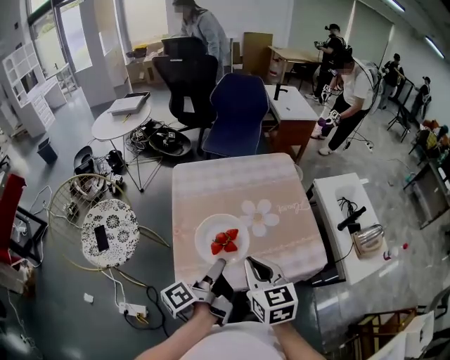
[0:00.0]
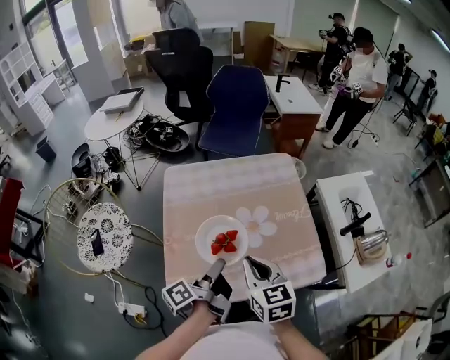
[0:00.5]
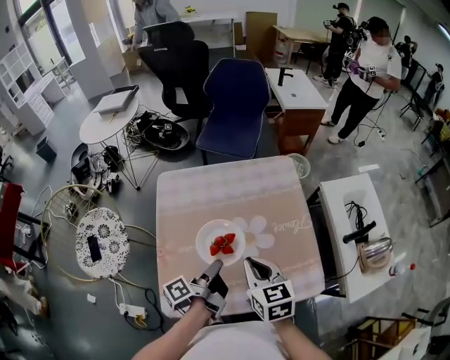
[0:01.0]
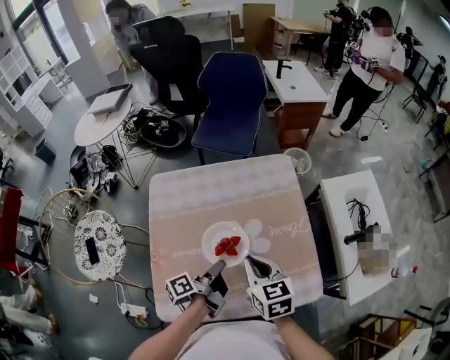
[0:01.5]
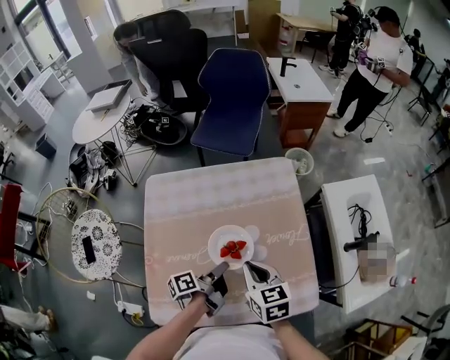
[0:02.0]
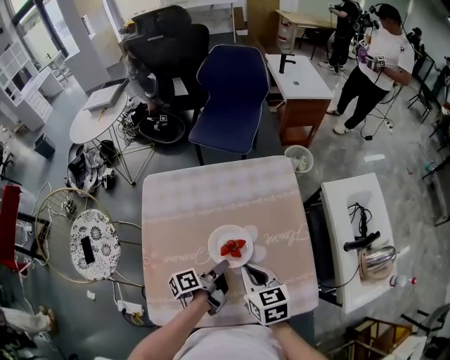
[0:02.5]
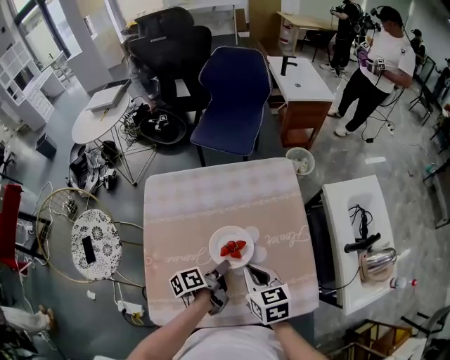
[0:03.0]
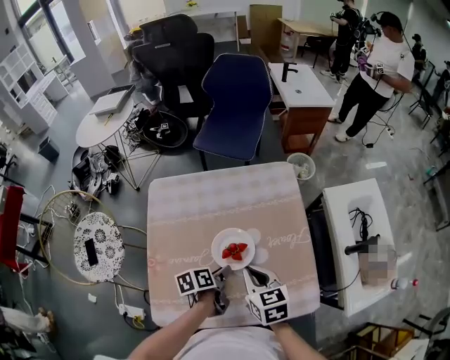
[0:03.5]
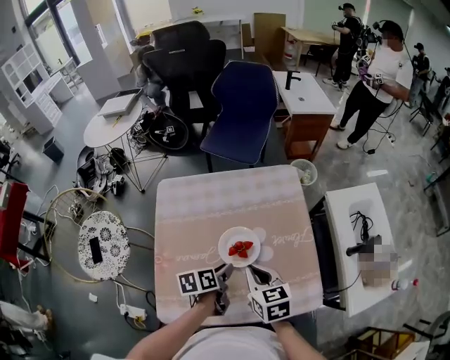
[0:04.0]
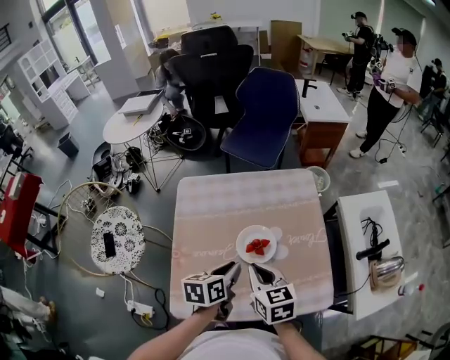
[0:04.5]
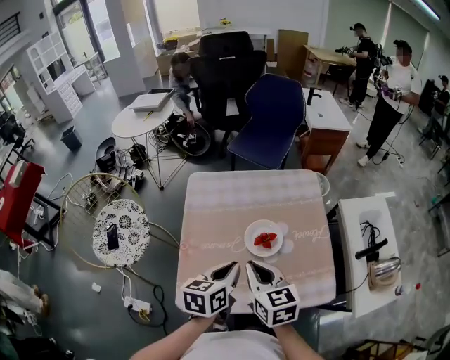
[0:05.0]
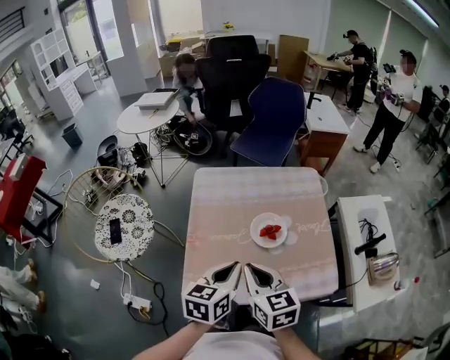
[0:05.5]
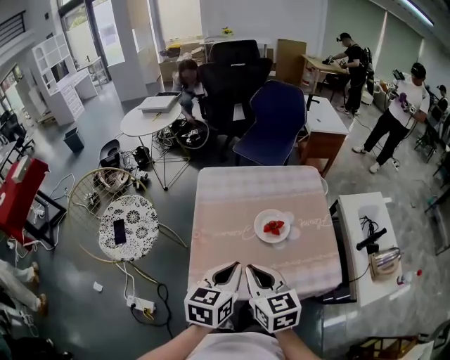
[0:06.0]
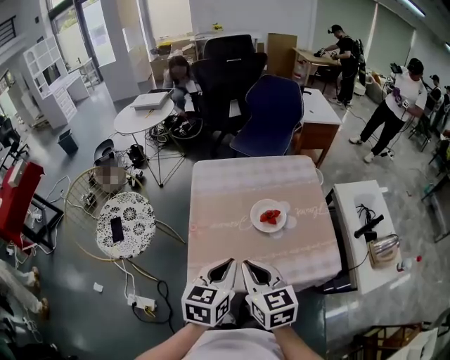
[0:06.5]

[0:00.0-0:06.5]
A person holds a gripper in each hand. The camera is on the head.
0:00.0 to 0:02.0: The right gripper shifts by roughly 25 cm.
0:02.0 to 0:04.5: The right gripper moves roughly 10 cm.
0:04.5 to 0:06.5: The right gripper changes place by some 20 cm.

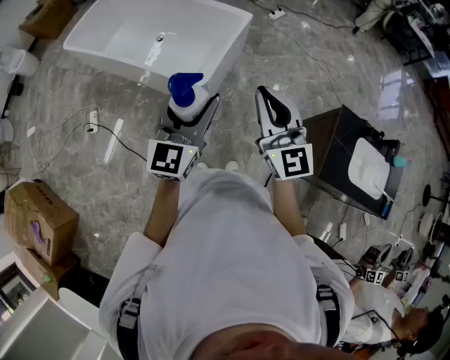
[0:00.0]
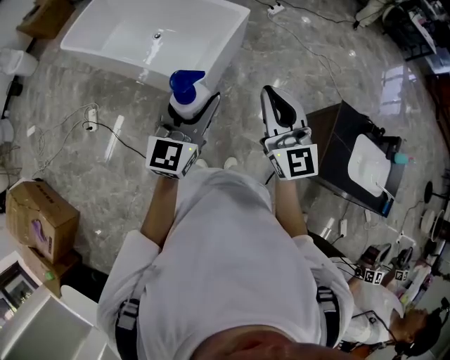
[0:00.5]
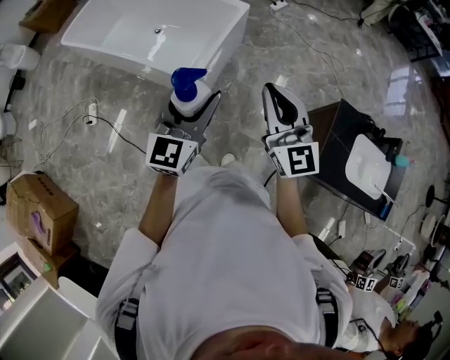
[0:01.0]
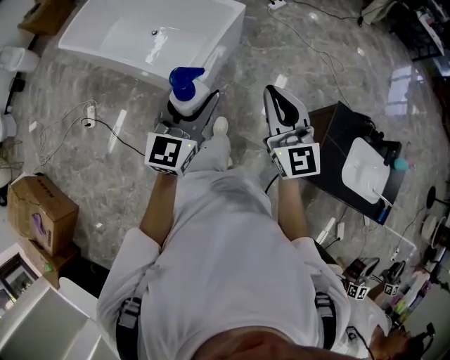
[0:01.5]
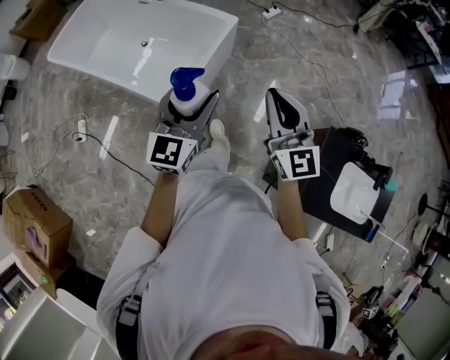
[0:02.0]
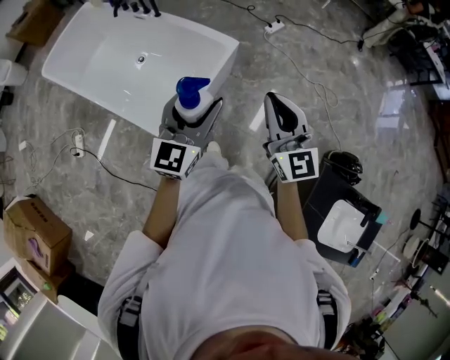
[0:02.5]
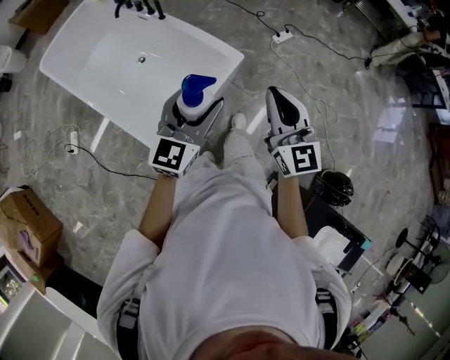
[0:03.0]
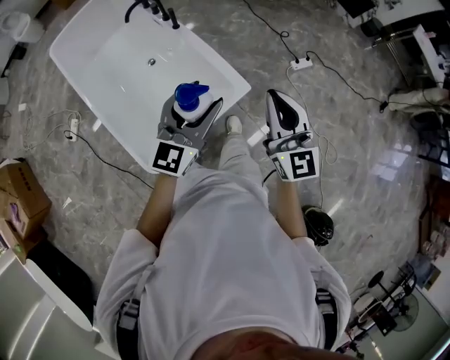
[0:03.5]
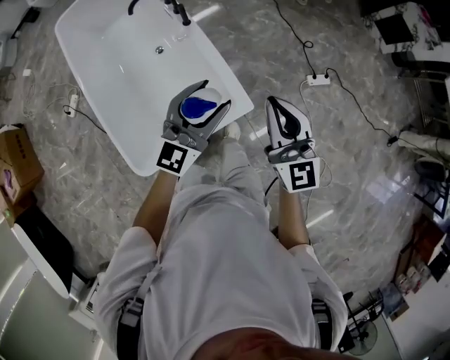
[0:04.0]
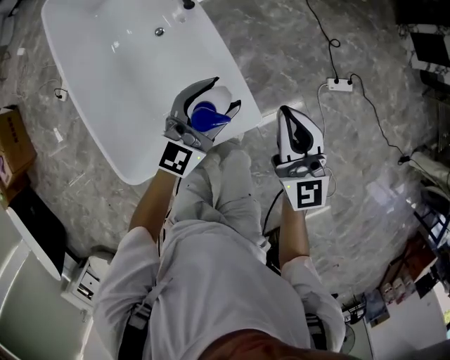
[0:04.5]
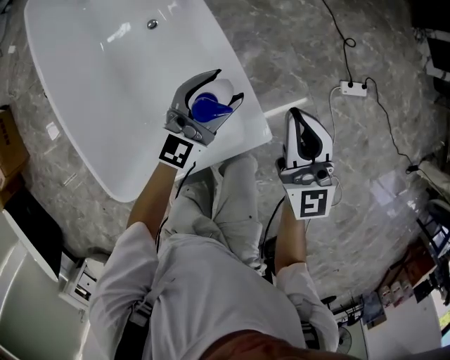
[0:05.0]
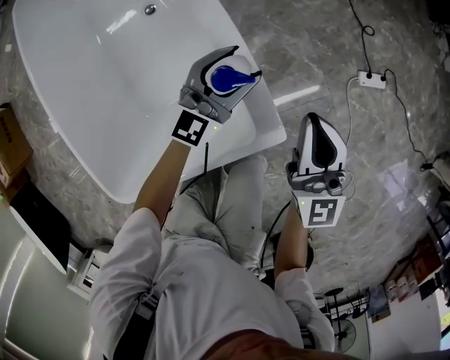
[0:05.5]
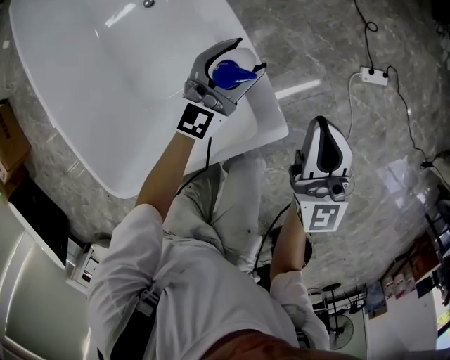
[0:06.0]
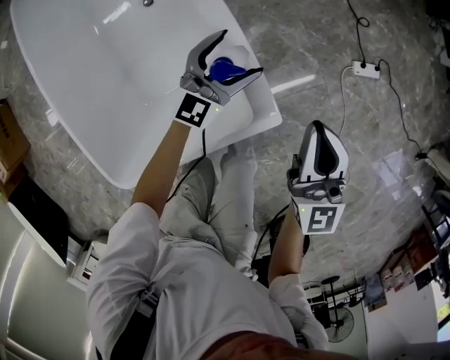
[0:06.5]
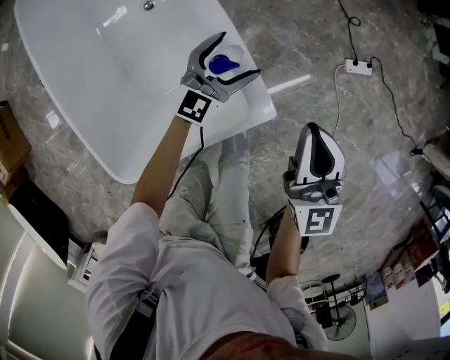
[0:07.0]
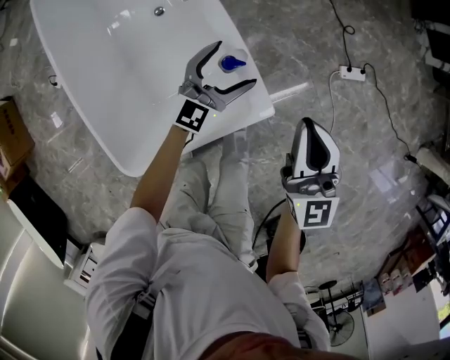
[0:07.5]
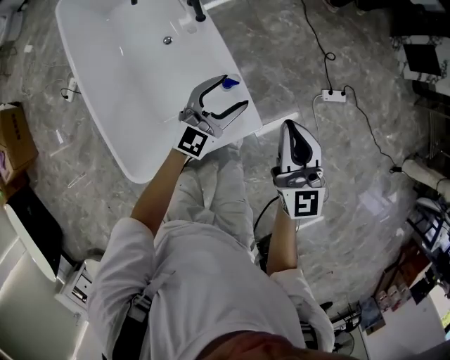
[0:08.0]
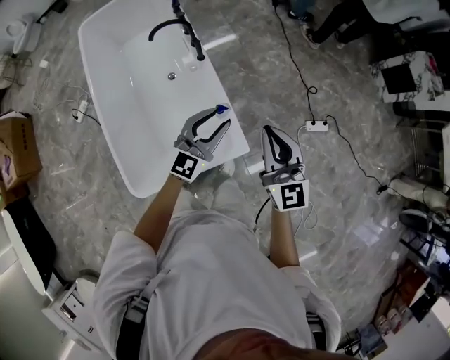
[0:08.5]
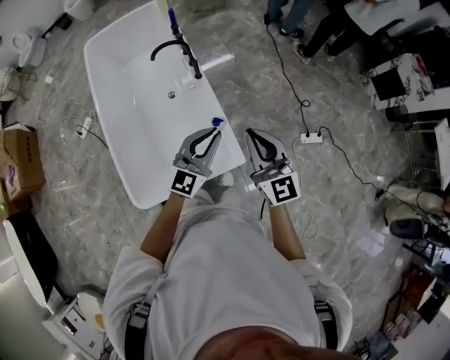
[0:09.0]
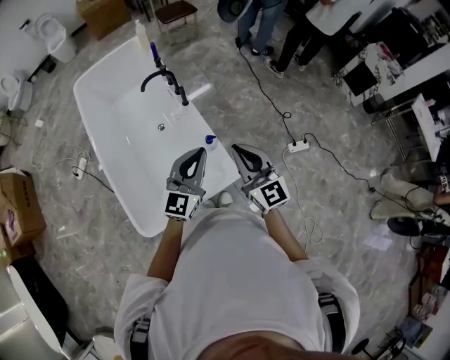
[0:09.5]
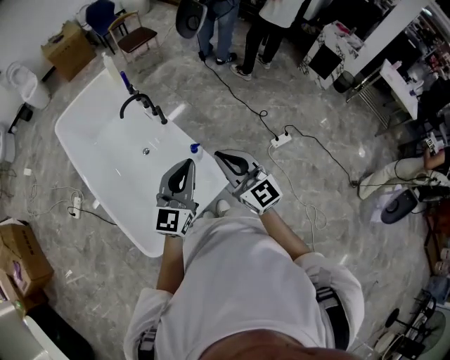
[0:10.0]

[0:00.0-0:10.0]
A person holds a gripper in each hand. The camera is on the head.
0:00.0 to 0:02.0: The grippers both shift forward and to the right by some 20 cm.
0:02.0 to 0:04.0: The two grippers travel together, roughly 70 cm. The left gripper changes its angle by roughly 20 degrees. The right gripper changes its angle by about 30 degrees.
0:04.0 to 0:06.0: The left gripper heads downward and forward, covering about 40 cm. The right gripper moves downward, approximately 35 cm.
0:06.0 to 0:08.0: The two grippers go some 25 cm upward.
0:08.0 to 0:10.0: The right gripper goes approximately 20 cm upward, backward and to the left. The left gripper is displaced upward and backward by some 30 cm, and closes.

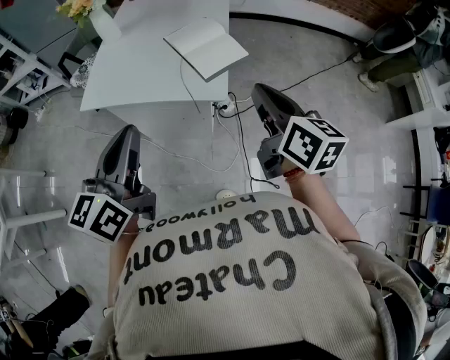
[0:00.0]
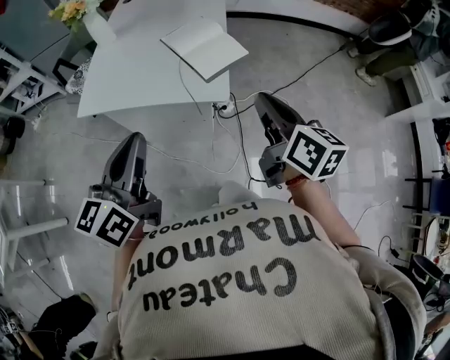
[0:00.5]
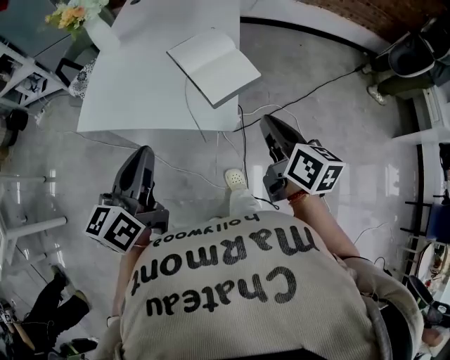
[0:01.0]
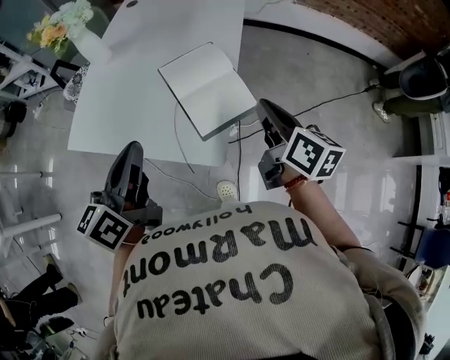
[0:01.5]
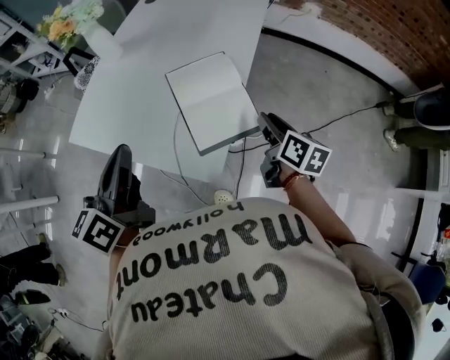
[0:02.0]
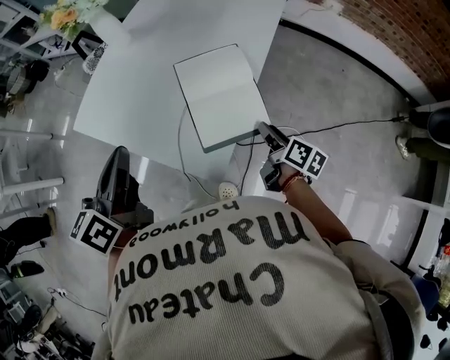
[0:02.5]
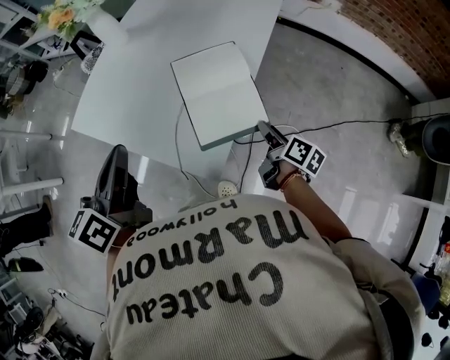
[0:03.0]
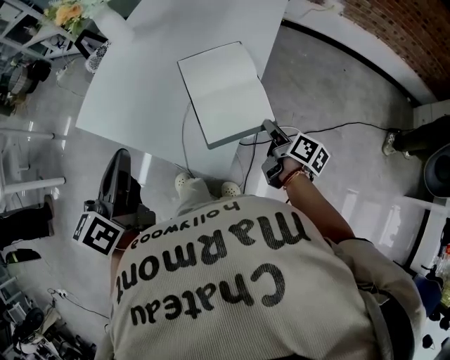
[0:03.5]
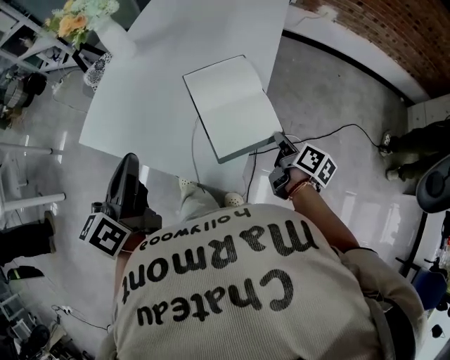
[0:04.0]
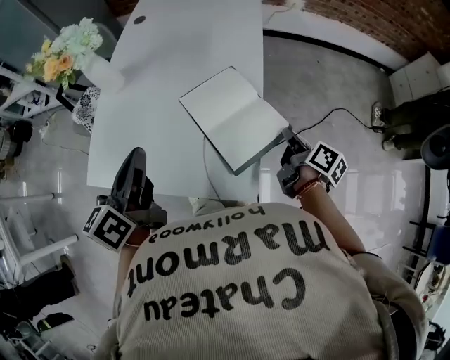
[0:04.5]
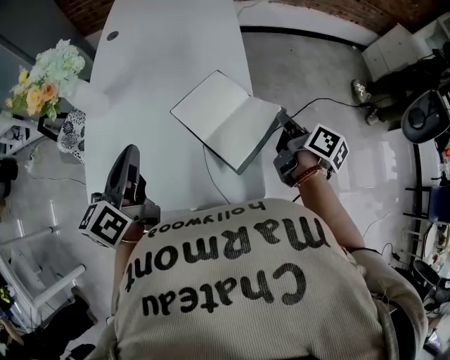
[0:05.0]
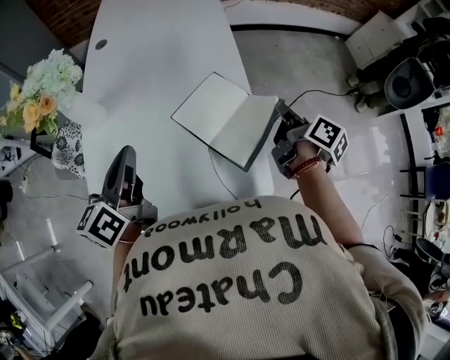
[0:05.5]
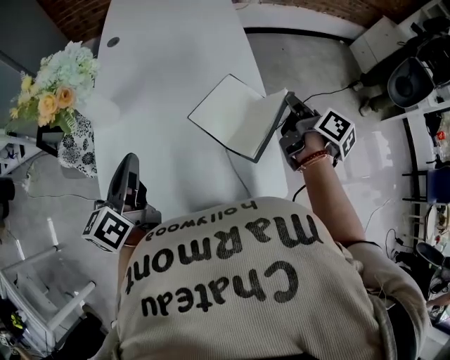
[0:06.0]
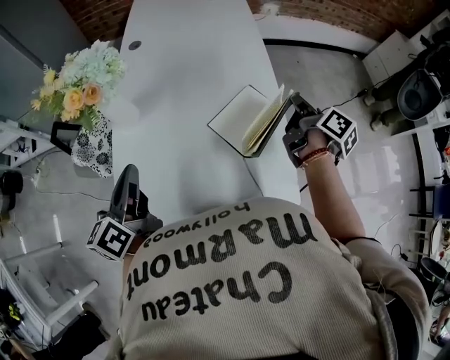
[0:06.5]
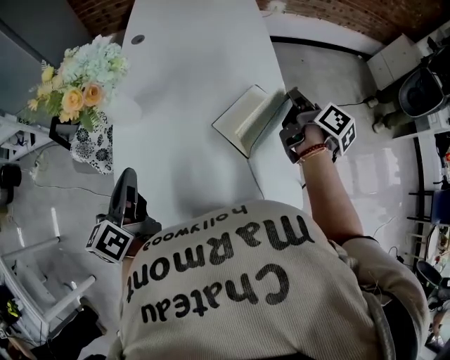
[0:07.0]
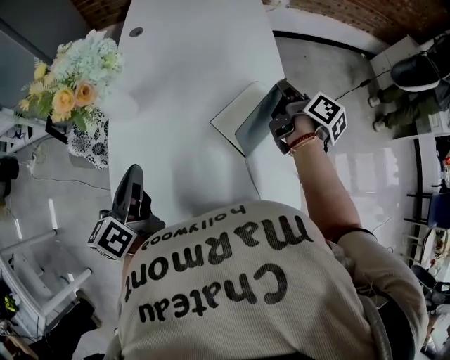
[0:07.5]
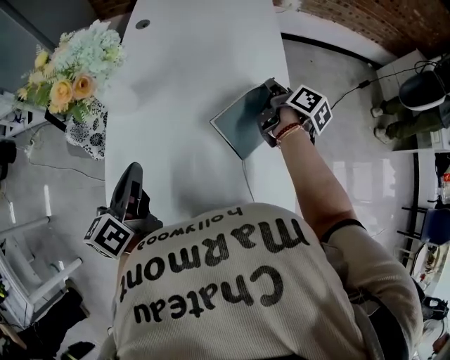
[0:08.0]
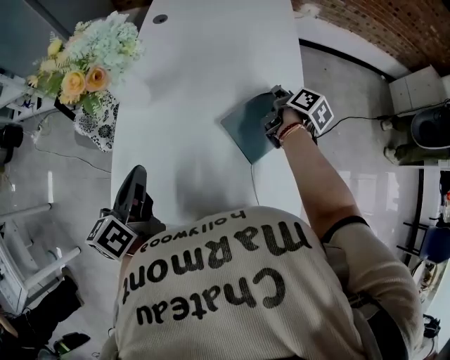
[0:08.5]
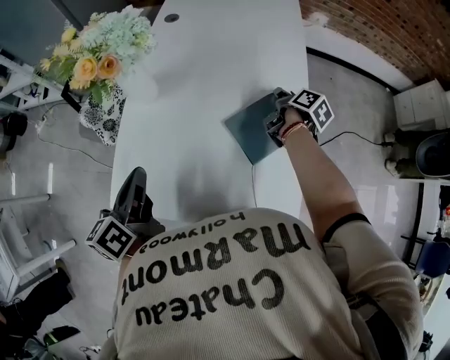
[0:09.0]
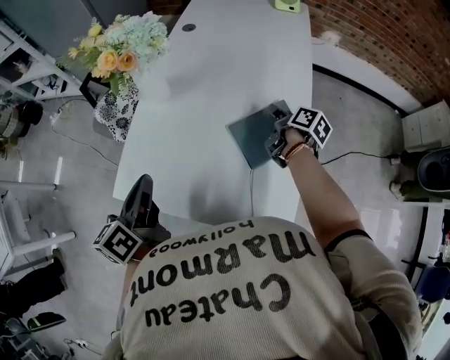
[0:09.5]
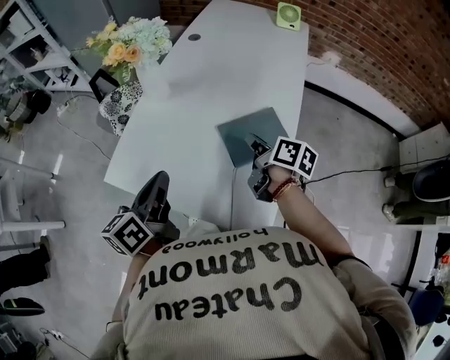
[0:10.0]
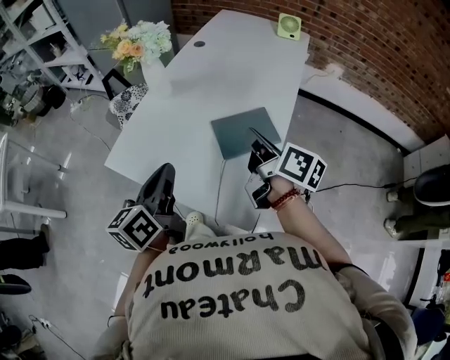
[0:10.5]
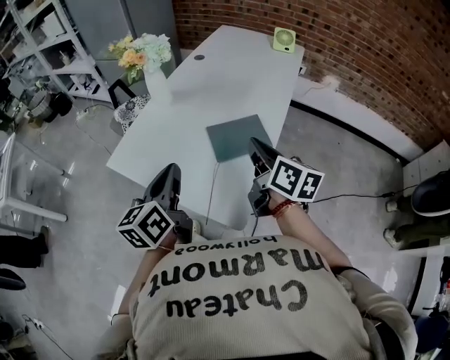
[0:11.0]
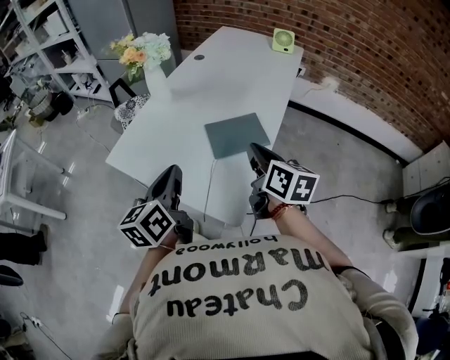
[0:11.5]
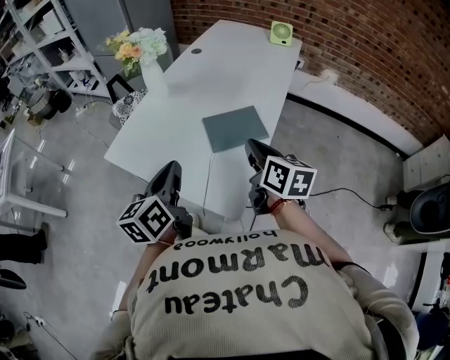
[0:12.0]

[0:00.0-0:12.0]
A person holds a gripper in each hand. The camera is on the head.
0:00.0 to 0:02.0: The left gripper travels forward by some 25 cm, and turns by roughly 20 degrees, while the right gripper is displaced forward and downward by approximately 35 cm, changes its angle by approximately 20 degrees, and opens.
0:02.0 to 0:04.0: The left gripper travels to the left by roughly 5 cm. The right gripper shifts approximately 10 cm downward, and turns by approximately 20 degrees.
0:04.0 to 0:06.0: The right gripper travels upward by approximately 15 cm, and changes its angle by some 30 degrees; the left gripper changes place by roughly 25 cm, and turns by approximately 30 degrees.
0:06.0 to 0:08.0: The right gripper moves forward, to the left and downward, about 20 cm; the left gripper ends up some 5 cm from where it was.
0:08.0 to 0:10.0: The right gripper moves backward and to the left, approximately 15 cm, rotates about 40 degrees, and opens, then closes again; the left gripper heads backward and to the right, covering about 15 cm.
0:10.0 to 0:12.0: The left gripper is displaced backward and to the right by approximately 15 cm. Meanwhile the right gripper heads backward and upward, covering approximately 15 cm, and rotates roughly 30 degrees.
